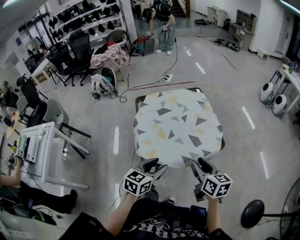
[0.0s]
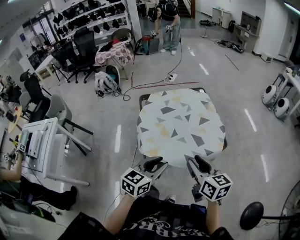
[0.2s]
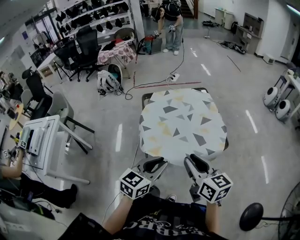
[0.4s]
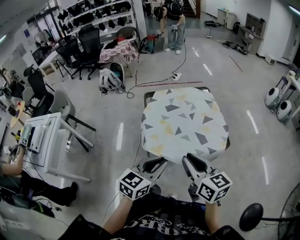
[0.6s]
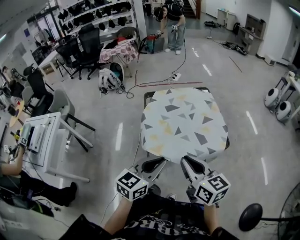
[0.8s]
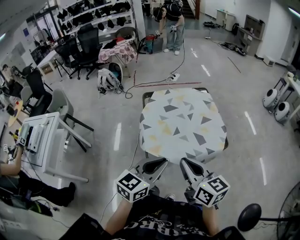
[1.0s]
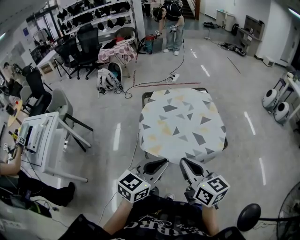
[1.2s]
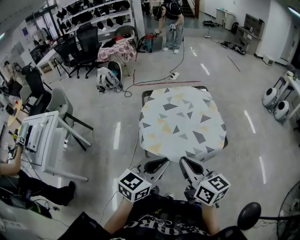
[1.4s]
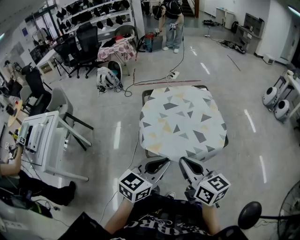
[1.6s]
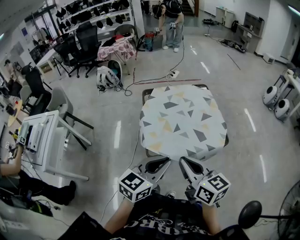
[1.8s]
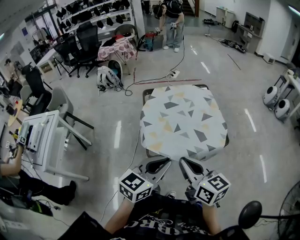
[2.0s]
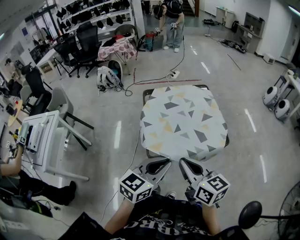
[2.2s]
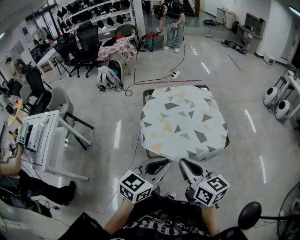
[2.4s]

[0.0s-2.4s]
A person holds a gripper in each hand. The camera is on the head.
0.0s to 1.2s: The right gripper moves to the left, upward and backward, approximately 15 cm, rotates about 20 degrees, and closes; the left gripper moves upward and backward, some 10 cm, and closes.
1.2s to 2.4s: The grippers move only a little.

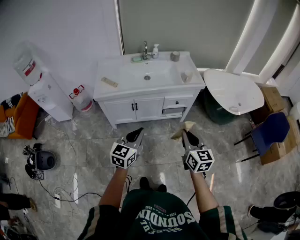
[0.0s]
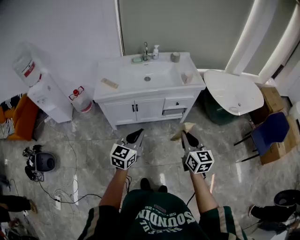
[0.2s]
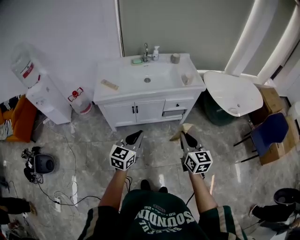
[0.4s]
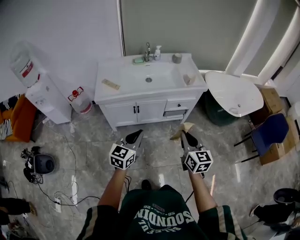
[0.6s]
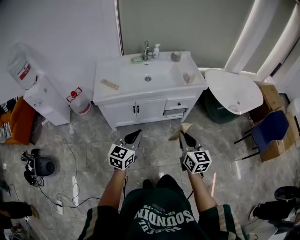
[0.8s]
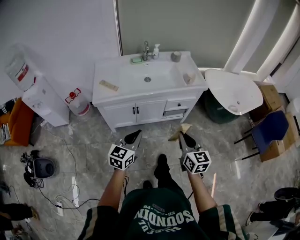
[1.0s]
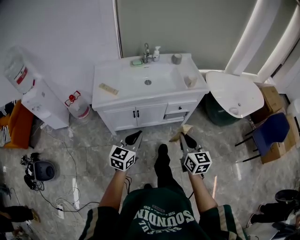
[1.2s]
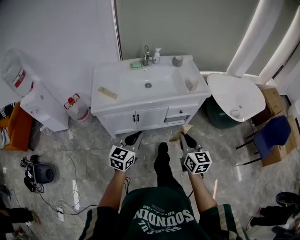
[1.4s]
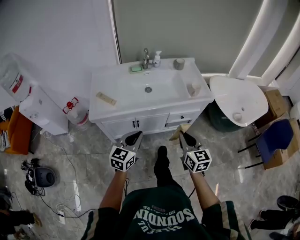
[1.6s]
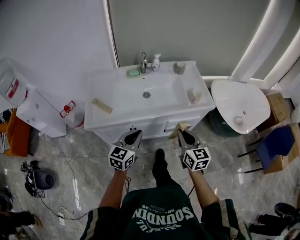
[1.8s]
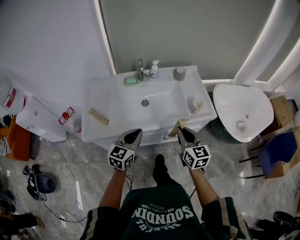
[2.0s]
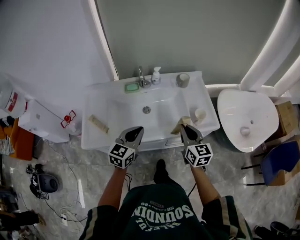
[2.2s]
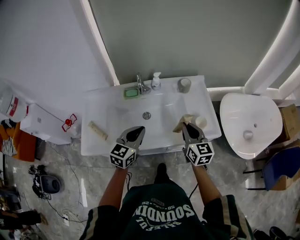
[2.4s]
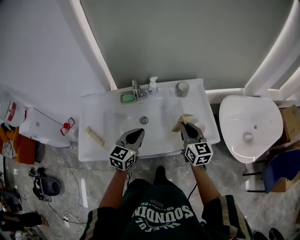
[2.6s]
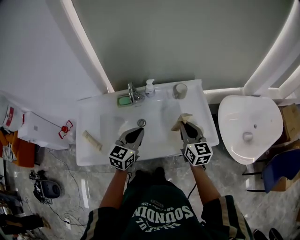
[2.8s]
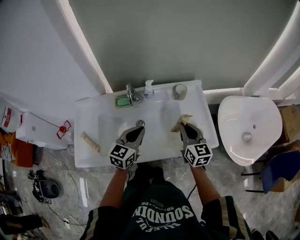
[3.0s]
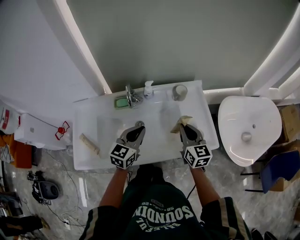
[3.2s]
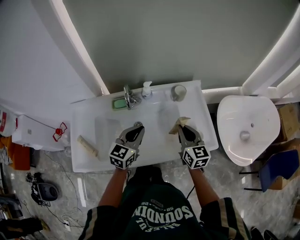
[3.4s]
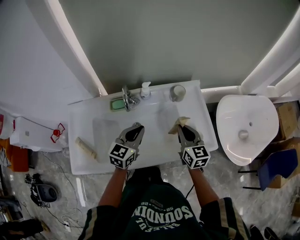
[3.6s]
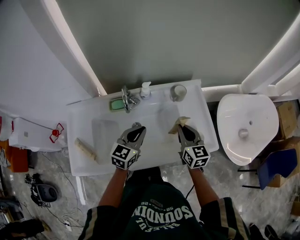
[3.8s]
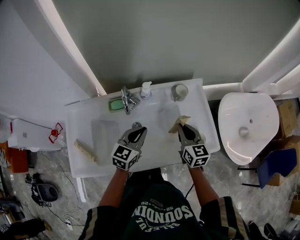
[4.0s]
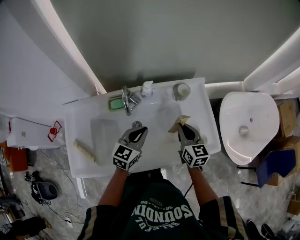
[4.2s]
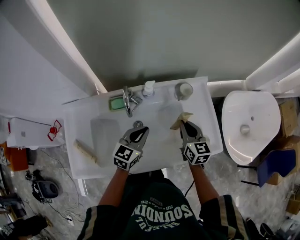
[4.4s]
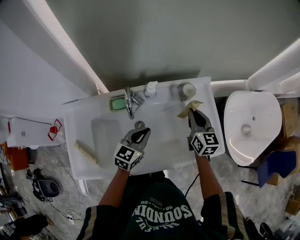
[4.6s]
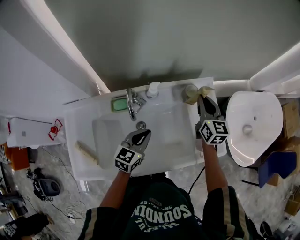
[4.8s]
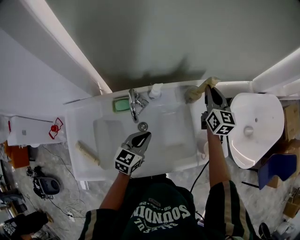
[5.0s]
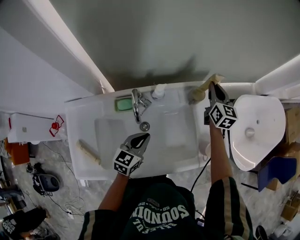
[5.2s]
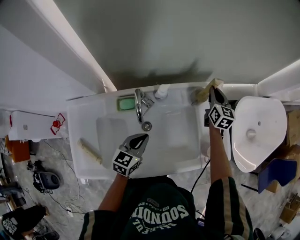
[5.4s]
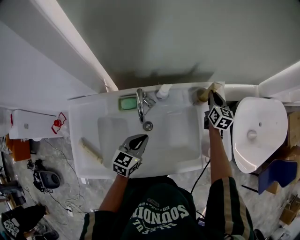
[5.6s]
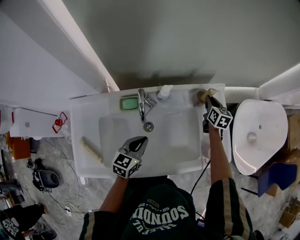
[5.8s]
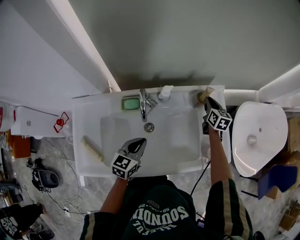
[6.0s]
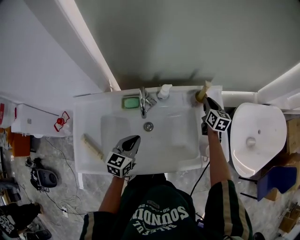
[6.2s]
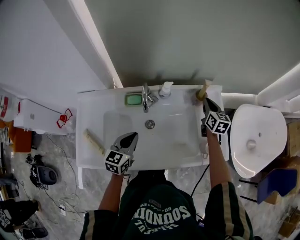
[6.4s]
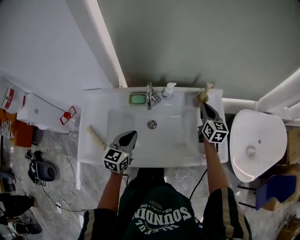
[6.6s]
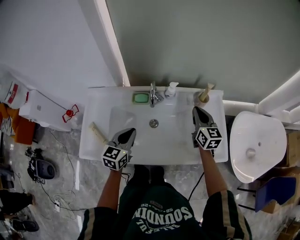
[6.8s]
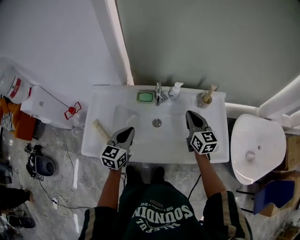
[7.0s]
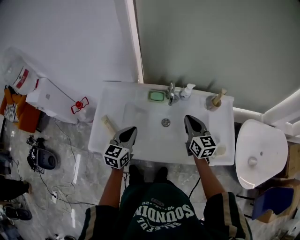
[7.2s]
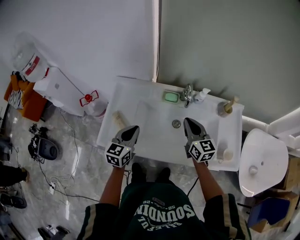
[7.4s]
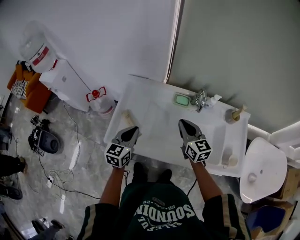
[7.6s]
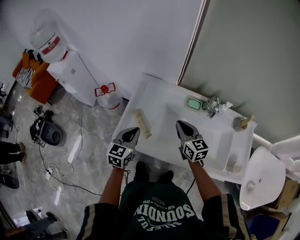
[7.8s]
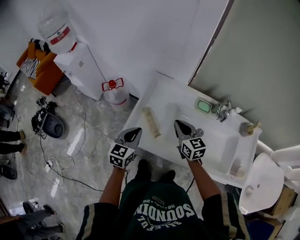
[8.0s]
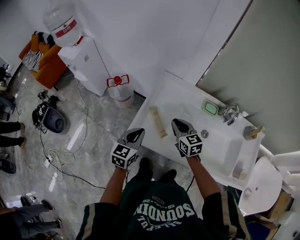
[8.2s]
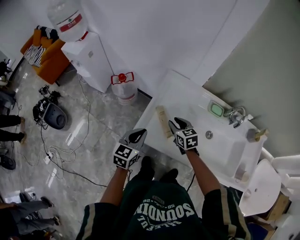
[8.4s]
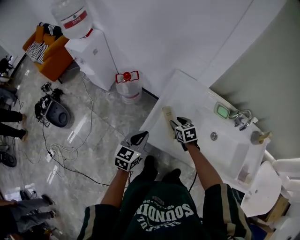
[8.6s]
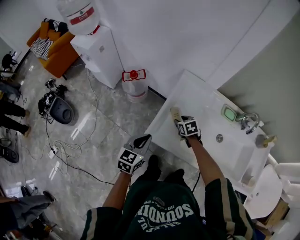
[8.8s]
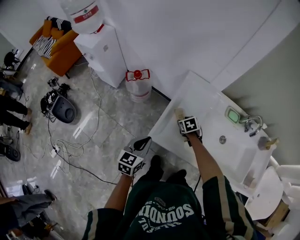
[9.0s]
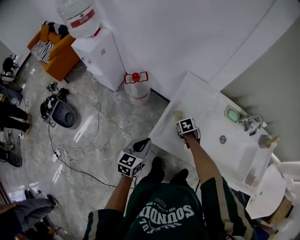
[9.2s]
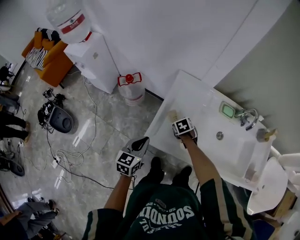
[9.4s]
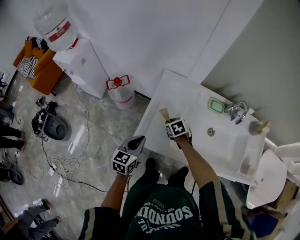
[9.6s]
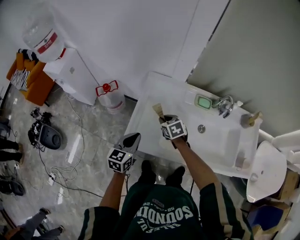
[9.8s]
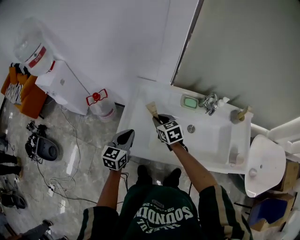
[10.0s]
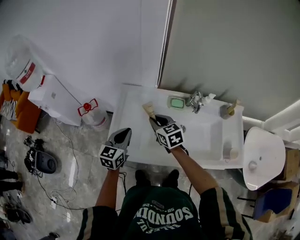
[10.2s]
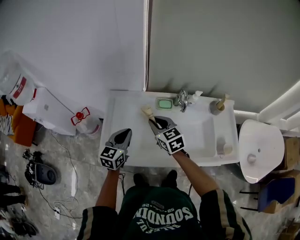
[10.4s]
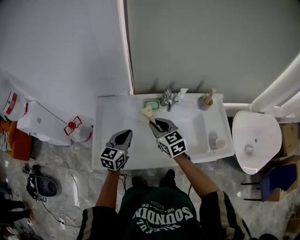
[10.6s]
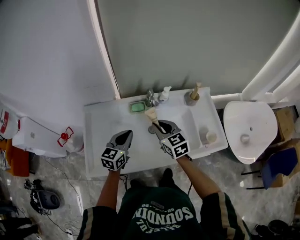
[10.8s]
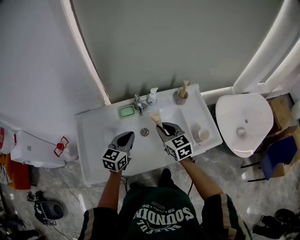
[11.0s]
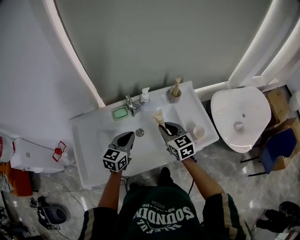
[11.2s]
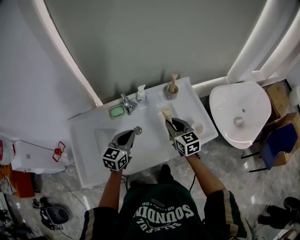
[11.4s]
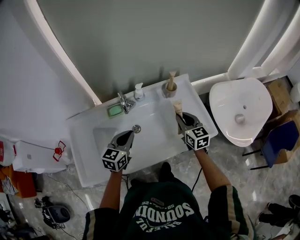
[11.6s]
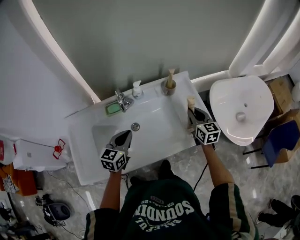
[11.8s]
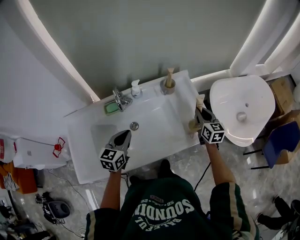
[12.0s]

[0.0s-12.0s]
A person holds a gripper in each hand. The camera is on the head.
0.0s to 1.6s: The grippers both shift forward and to the left by approximately 20 cm.
1.6s to 3.0s: The two grippers travel together, forward, approximately 40 cm.
3.0s to 4.4s: The grippers both shift forward and downward by approximately 10 cm.
4.4s to 6.0s: The left gripper goes approximately 5 cm to the left, while the right gripper shifts approximately 20 cm forward.
6.0s to 7.6s: The left gripper moves about 30 cm, and changes its angle by approximately 30 degrees; the right gripper ends up some 50 cm from where it was, and rotates roughly 50 degrees.
7.6s to 9.0s: The left gripper travels to the left by roughly 25 cm; the right gripper moves to the left, downward and forward, about 40 cm, points its fingers some 50 degrees further downward, and opens up.
9.0s to 10.4s: The left gripper moves to the right, about 25 cm, and changes its angle by about 20 degrees. Meanwhile the right gripper heads upward and to the right, covering roughly 35 cm, angles its fingers upward, by roughly 40 degrees, and closes up.
10.4s to 12.0s: The left gripper ends up about 30 cm from where it was, and swivels some 20 degrees. The right gripper ends up about 60 cm from where it was, and changes its angle by roughly 50 degrees.

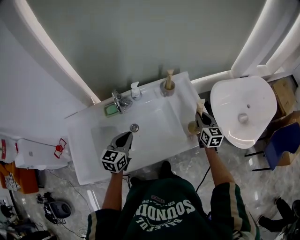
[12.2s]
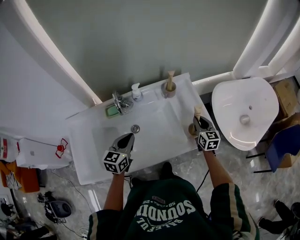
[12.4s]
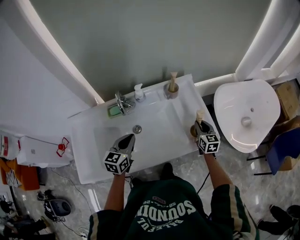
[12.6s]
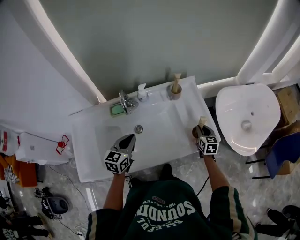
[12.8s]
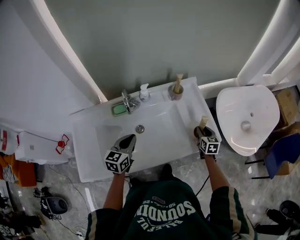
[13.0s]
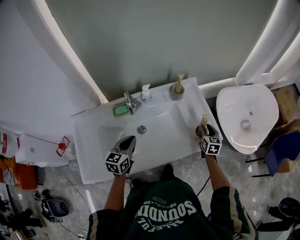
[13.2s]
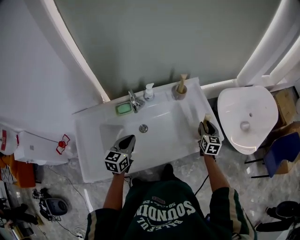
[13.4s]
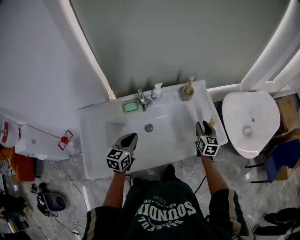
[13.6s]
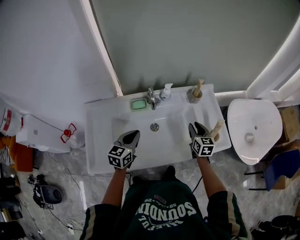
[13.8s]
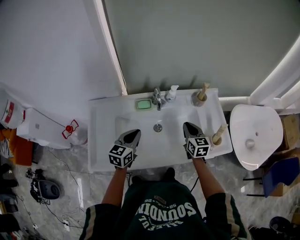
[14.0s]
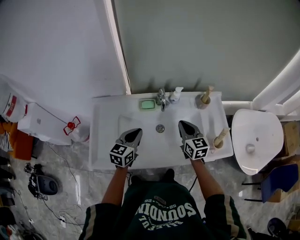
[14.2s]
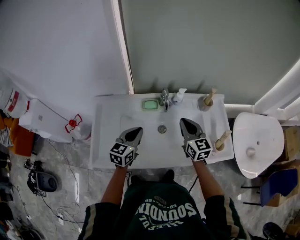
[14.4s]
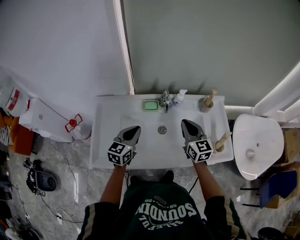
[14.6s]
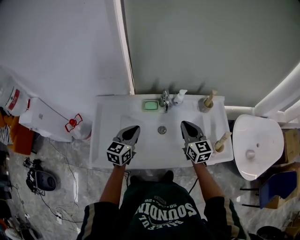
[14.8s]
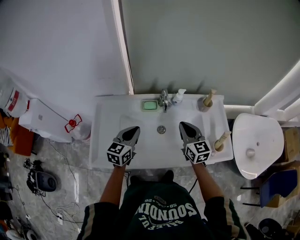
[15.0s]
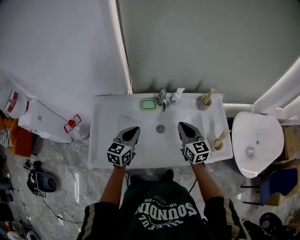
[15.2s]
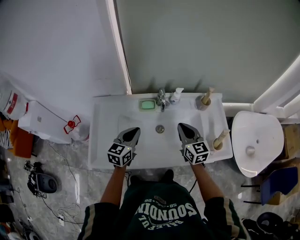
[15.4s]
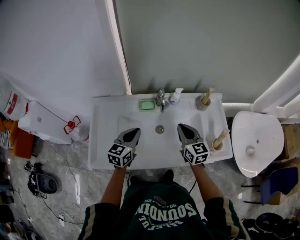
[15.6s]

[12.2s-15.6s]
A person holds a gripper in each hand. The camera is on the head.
12.2s to 13.8s: The right gripper goes roughly 20 cm to the left. The left gripper moves to the left, some 10 cm.
13.8s to 15.6s: The right gripper shifts about 15 cm to the left and upward, swivels some 20 degrees, and closes up.

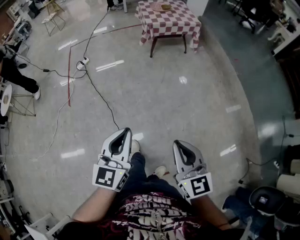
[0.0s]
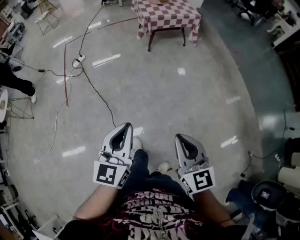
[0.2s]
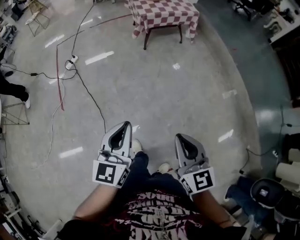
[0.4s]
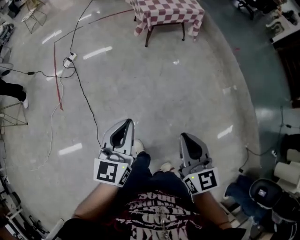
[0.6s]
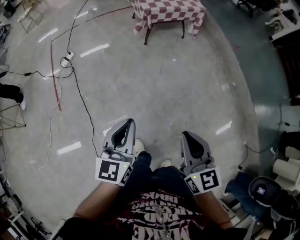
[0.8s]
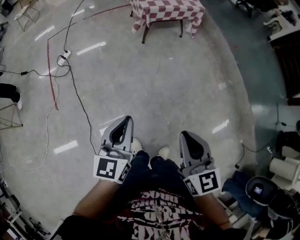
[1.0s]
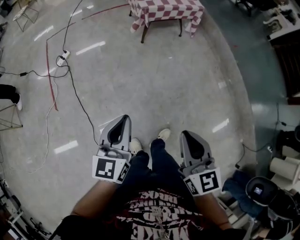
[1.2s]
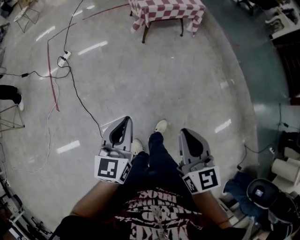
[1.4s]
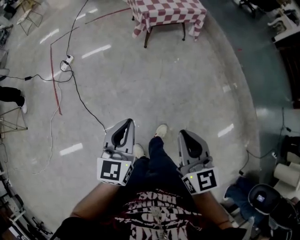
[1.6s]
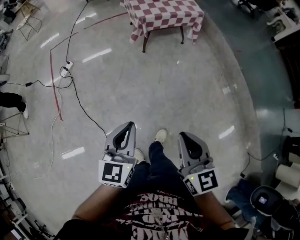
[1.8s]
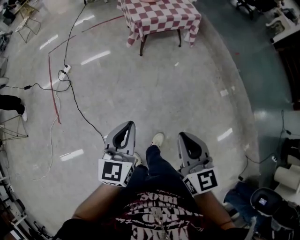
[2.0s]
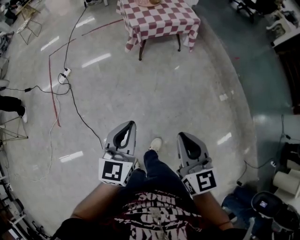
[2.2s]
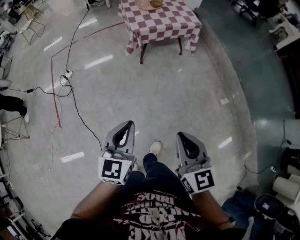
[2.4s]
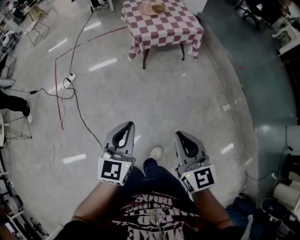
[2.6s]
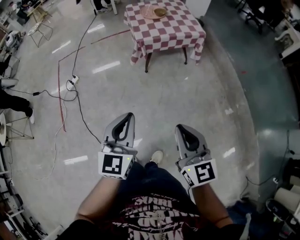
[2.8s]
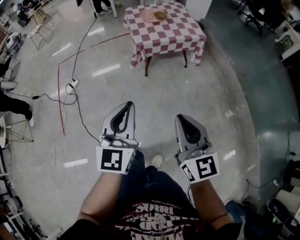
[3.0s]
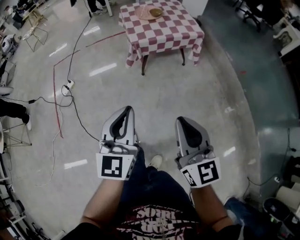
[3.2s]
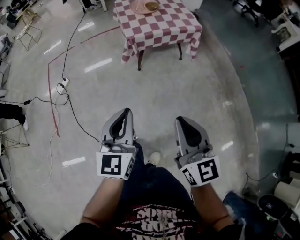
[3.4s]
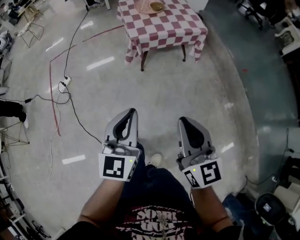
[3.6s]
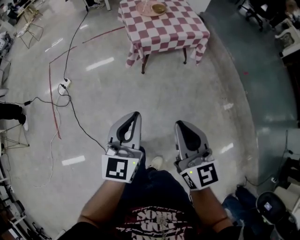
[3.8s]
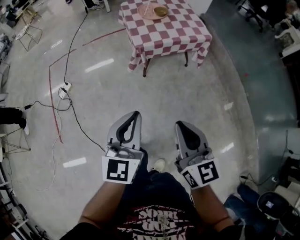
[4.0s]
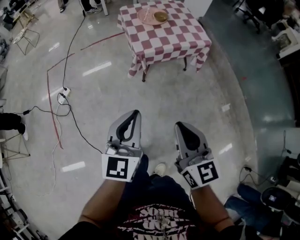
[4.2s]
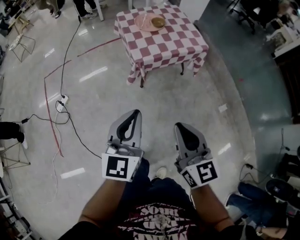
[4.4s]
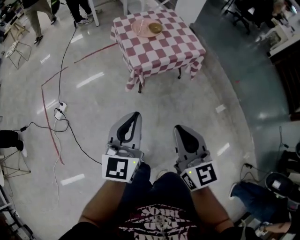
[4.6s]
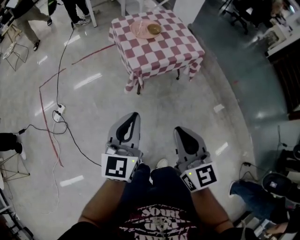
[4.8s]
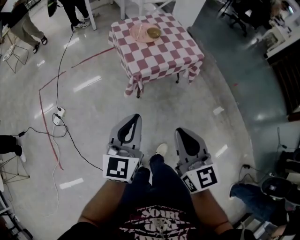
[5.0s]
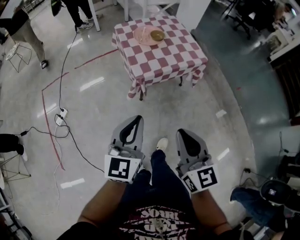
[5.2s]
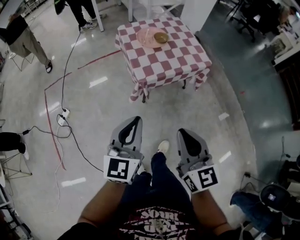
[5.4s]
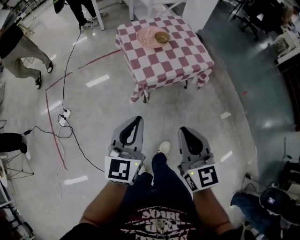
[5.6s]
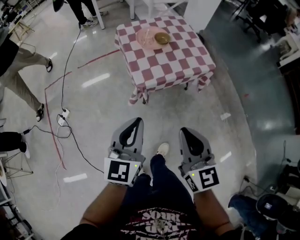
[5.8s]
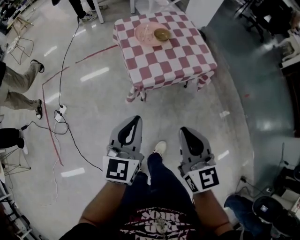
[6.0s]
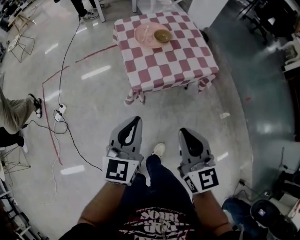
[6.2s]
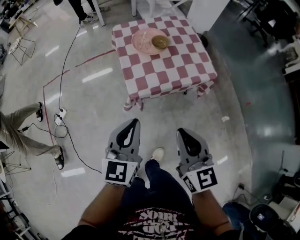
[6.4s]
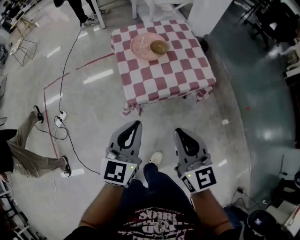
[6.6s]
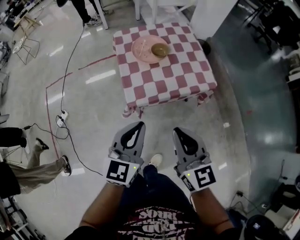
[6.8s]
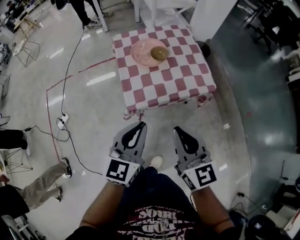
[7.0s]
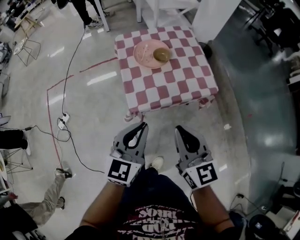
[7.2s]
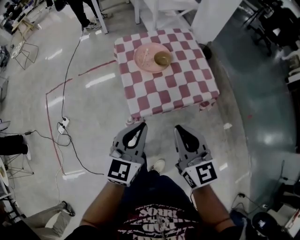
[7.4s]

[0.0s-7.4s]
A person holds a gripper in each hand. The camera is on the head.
0.0s to 1.4s: Both grippers move forward, approximately 25 cm.
1.4s to 3.0s: Both grippers travel together forward and to the right, about 30 cm. The left gripper changes its angle by some 20 degrees.
3.0s to 4.4s: The right gripper is displaced forward and to the left by some 20 cm. Meanwhile the left gripper travels forward by about 20 cm.
4.4s to 6.0s: The grippers both shift forward by roughly 20 cm.
6.0s to 7.4s: The two grippers go approximately 15 cm forward.
